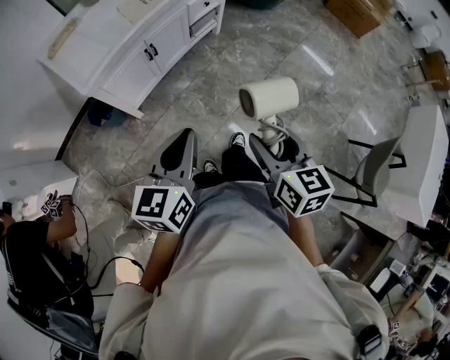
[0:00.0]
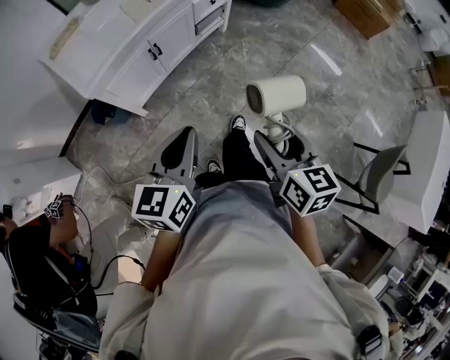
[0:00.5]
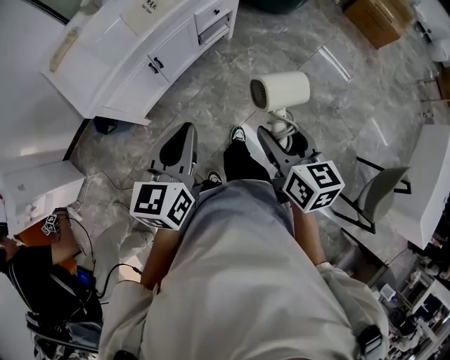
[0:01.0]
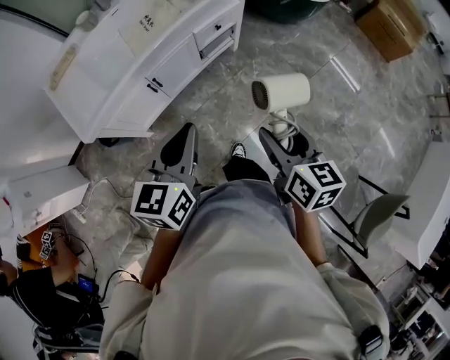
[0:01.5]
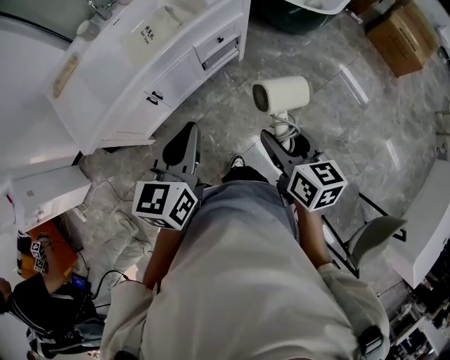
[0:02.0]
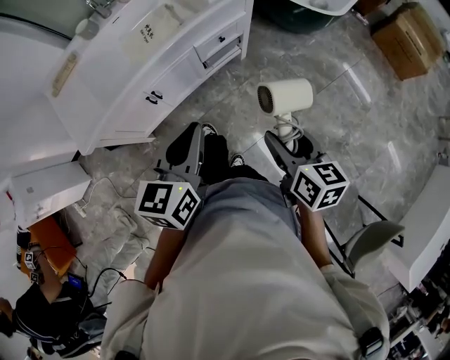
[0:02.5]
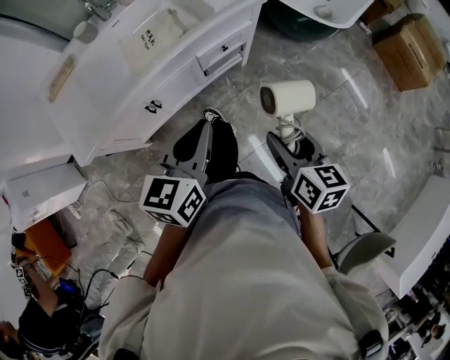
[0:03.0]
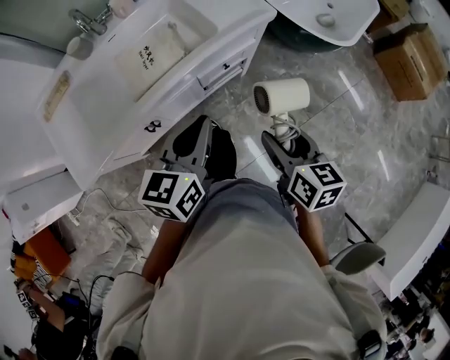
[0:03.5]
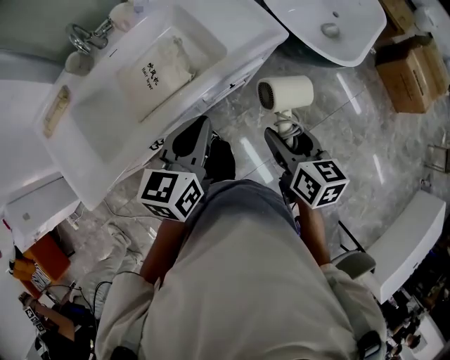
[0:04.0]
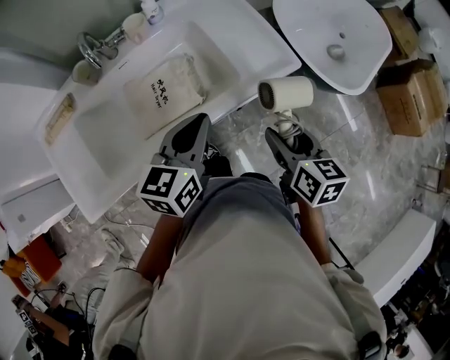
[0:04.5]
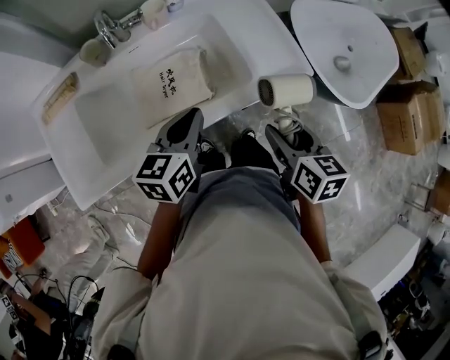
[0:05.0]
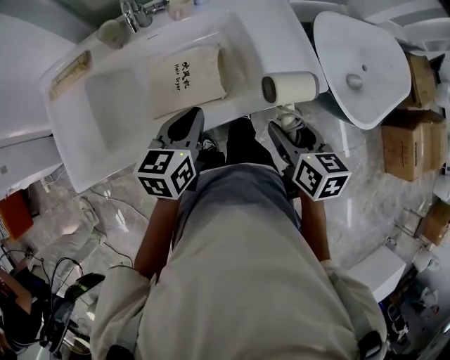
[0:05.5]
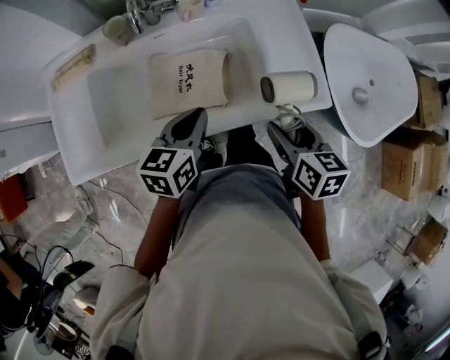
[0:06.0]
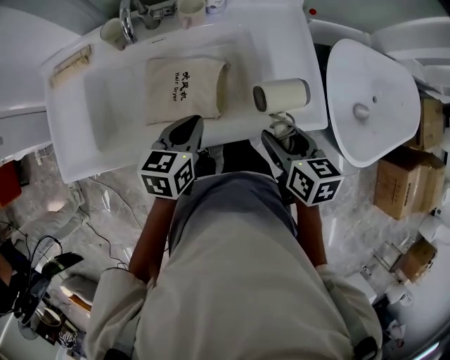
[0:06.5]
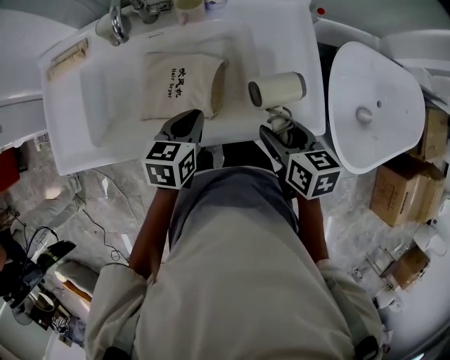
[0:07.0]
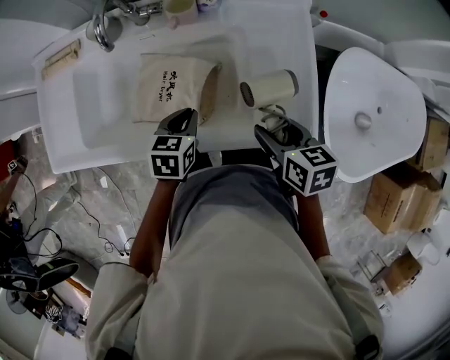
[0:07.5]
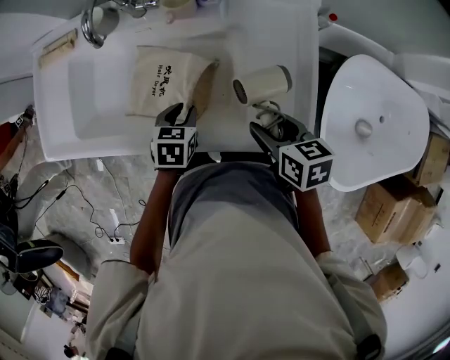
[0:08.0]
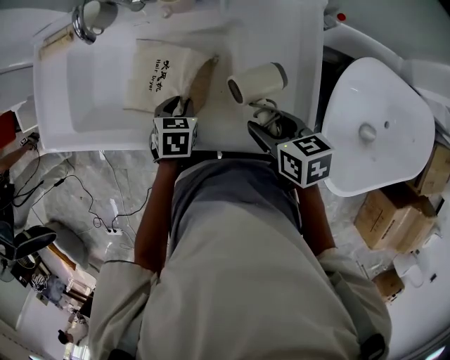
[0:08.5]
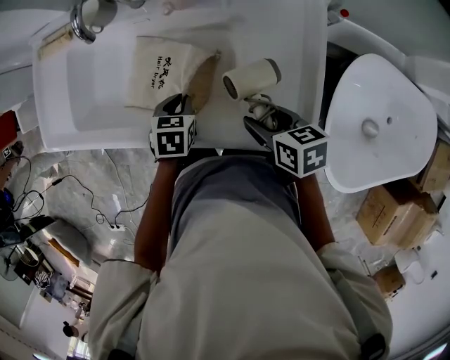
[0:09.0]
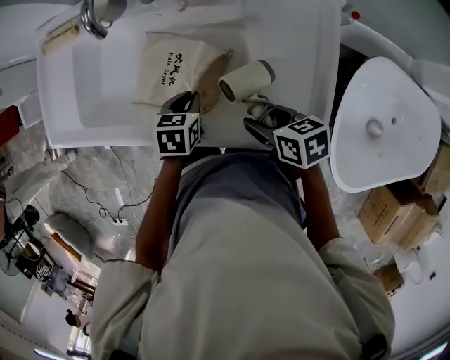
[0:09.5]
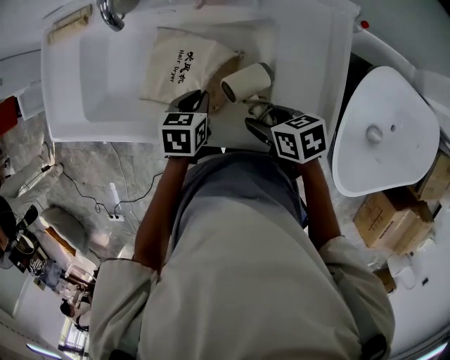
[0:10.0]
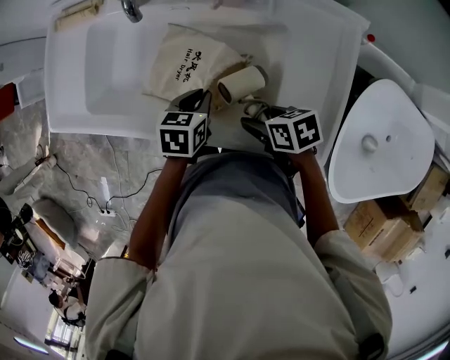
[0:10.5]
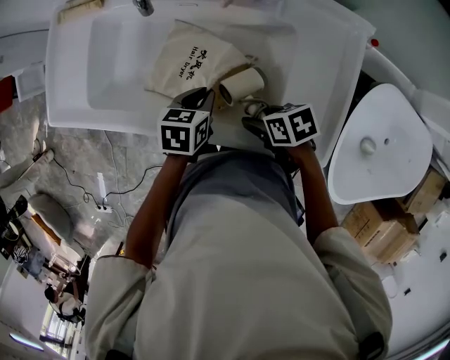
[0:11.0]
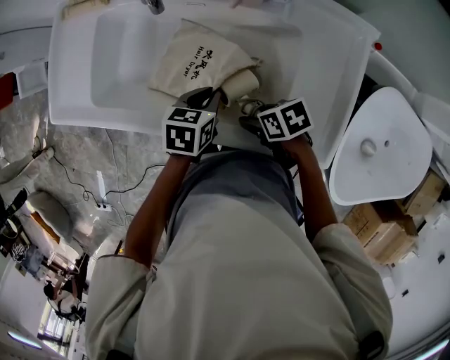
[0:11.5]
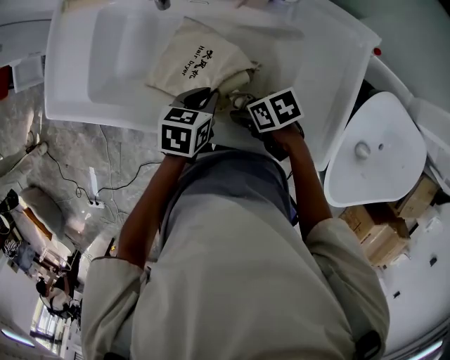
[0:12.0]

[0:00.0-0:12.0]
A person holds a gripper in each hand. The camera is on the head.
0:00.0 to 0:02.0: The two grippers go roughly 35 cm forward and to the right.
0:02.0 to 0:04.0: Both grippers move forward, about 30 cm.
0:04.0 to 0:06.0: The right gripper heads forward, covering approximately 20 cm, and swivels approximately 20 degrees. The left gripper heads forward, to the left and downward, covering some 20 cm, and changes its angle by roughly 20 degrees.
0:06.0 to 0:08.0: The right gripper ends up roughly 15 cm from where it was, and rotates roughly 30 degrees. Meanwhile the left gripper heads downward, covering about 15 cm, points its fingers about 30 degrees further downward, and opens its fingers.
0:08.0 to 0:10.0: The right gripper moves downward and to the left, about 10 cm, and swivels approximately 20 degrees.
0:10.0 to 0:12.0: The right gripper ends up approximately 10 cm from where it was.

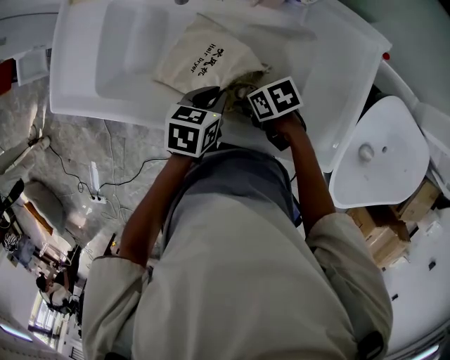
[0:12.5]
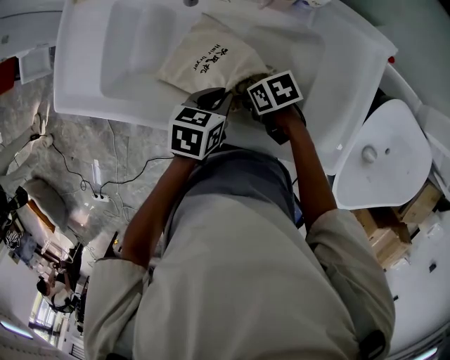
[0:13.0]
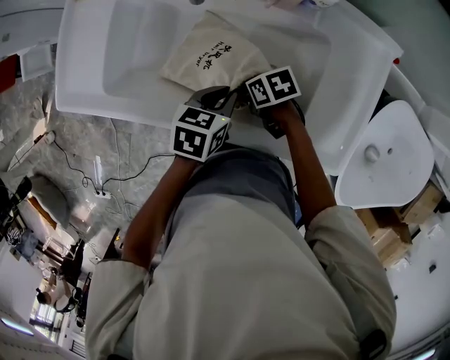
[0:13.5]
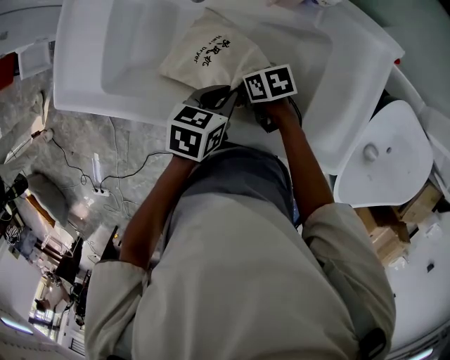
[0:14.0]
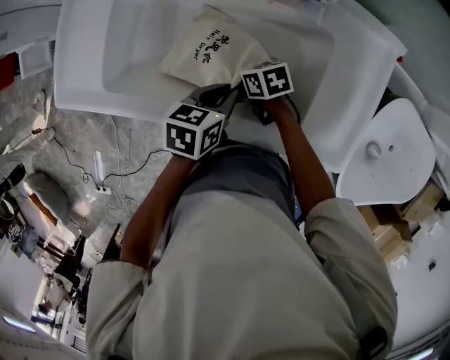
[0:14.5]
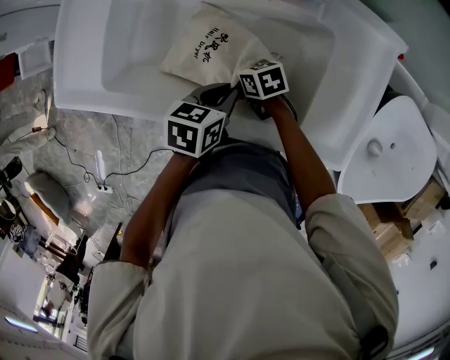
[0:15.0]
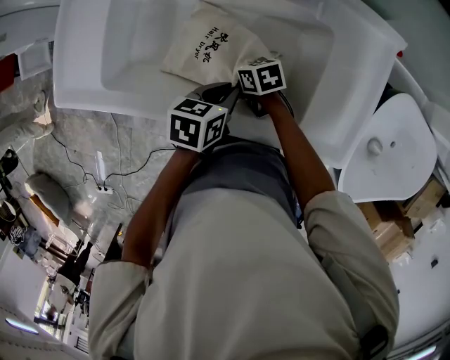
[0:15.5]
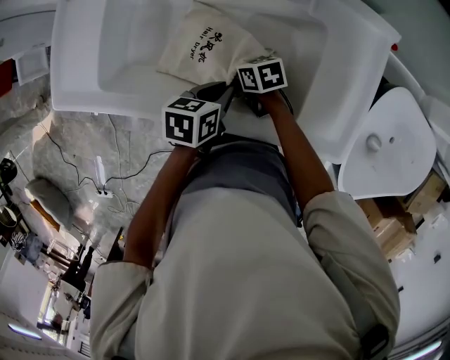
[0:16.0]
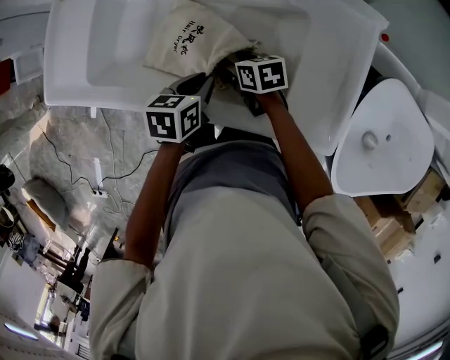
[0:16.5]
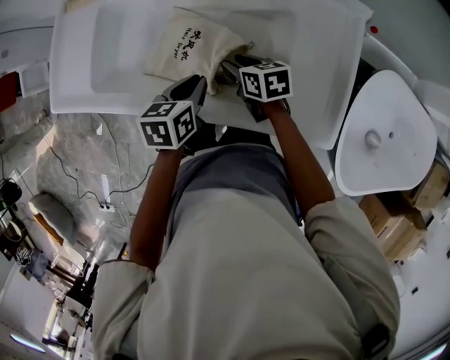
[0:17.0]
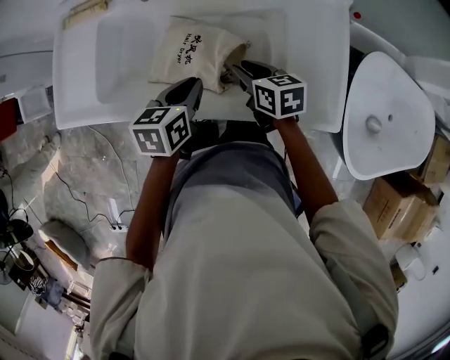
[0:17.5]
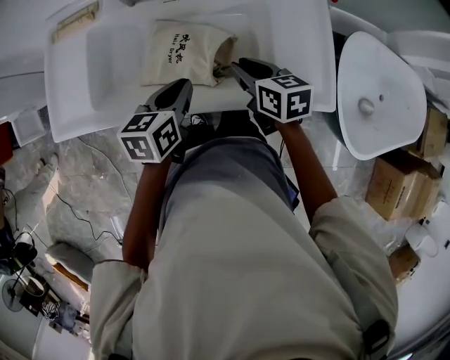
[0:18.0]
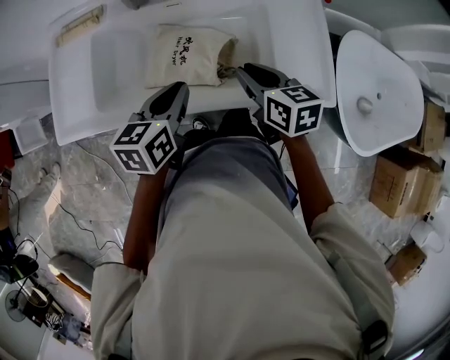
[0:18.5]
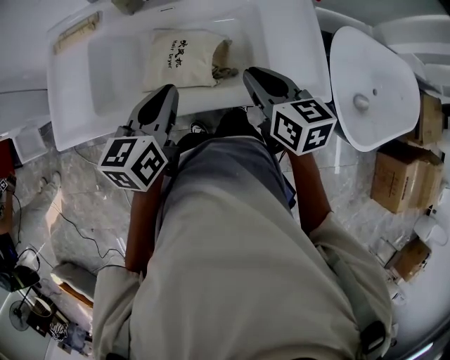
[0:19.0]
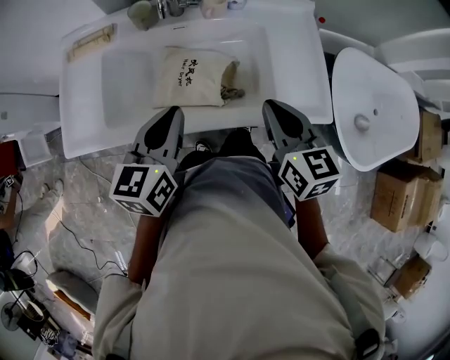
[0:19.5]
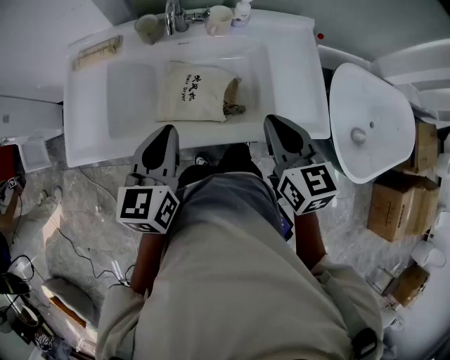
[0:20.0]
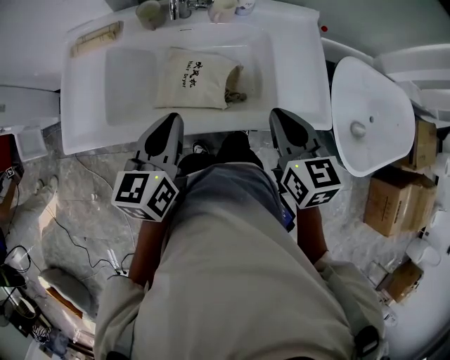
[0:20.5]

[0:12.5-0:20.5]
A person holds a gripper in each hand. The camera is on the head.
0:12.5 to 0:14.5: The right gripper changes place by approximately 10 cm.
0:14.5 to 0:16.5: The right gripper changes place by approximately 5 cm.
0:16.5 to 0:18.5: The right gripper goes some 25 cm upward and backward, swivels approximately 30 degrees, and closes its fingers. Meanwhile the left gripper goes some 15 cm upward and to the left, and changes its angle by about 20 degrees.
0:18.5 to 0:20.5: The right gripper shifts about 10 cm upward and backward. The left gripper travels upward by some 10 cm.

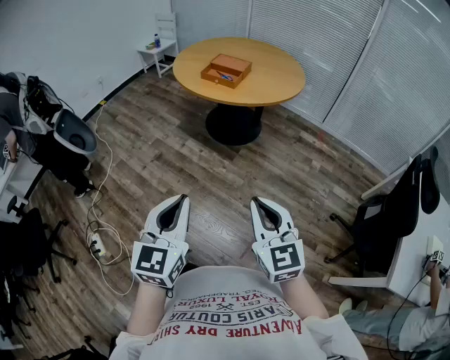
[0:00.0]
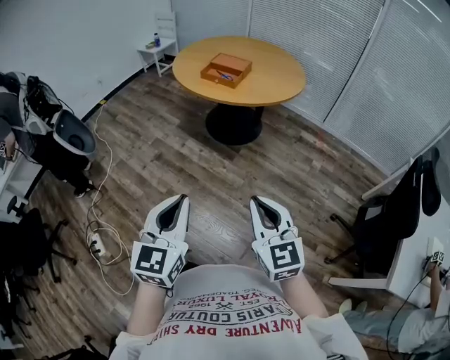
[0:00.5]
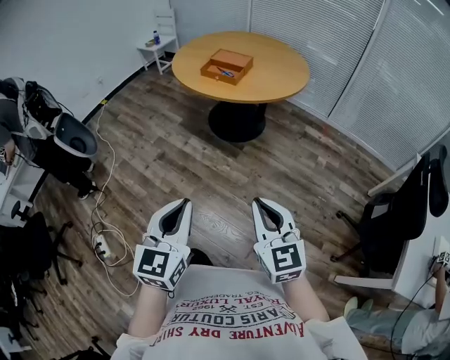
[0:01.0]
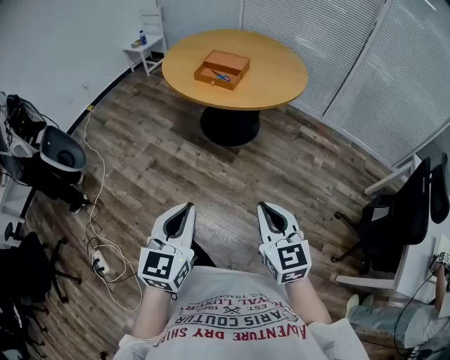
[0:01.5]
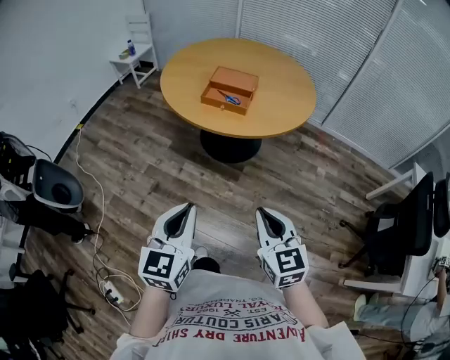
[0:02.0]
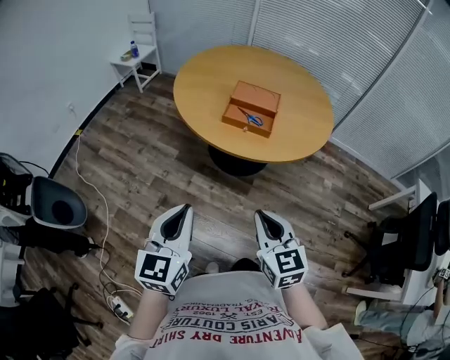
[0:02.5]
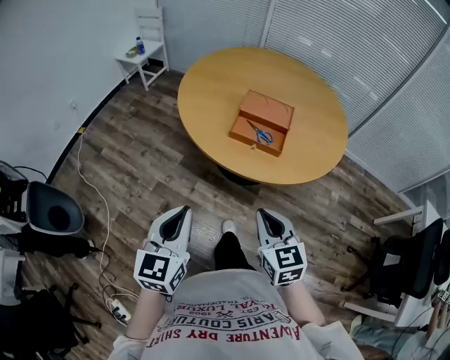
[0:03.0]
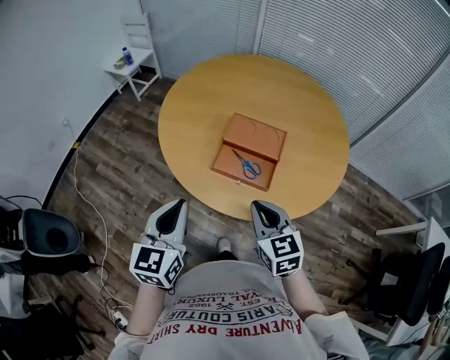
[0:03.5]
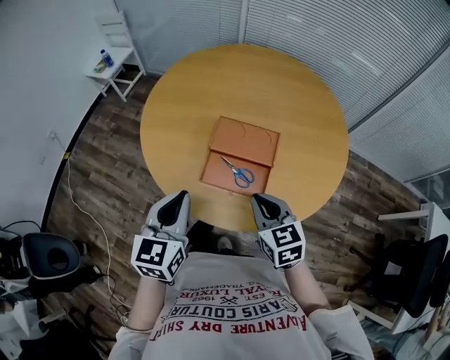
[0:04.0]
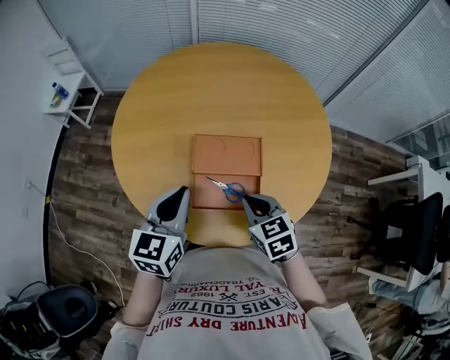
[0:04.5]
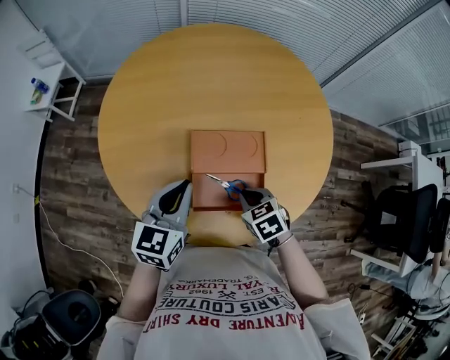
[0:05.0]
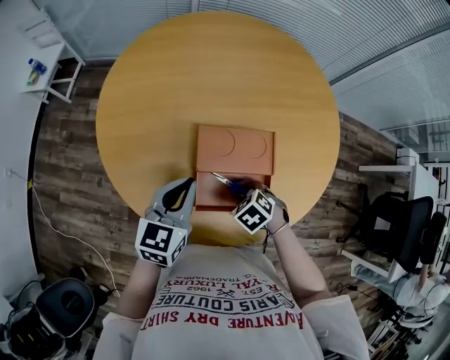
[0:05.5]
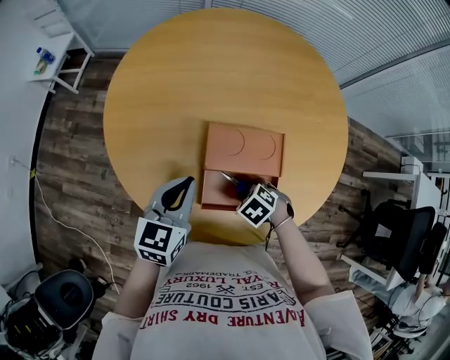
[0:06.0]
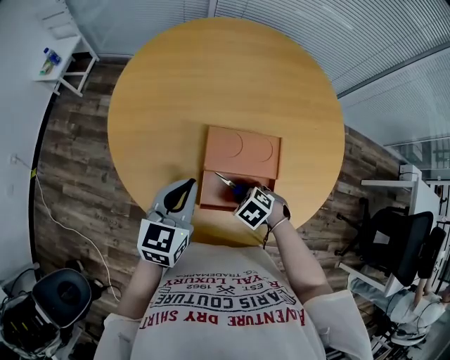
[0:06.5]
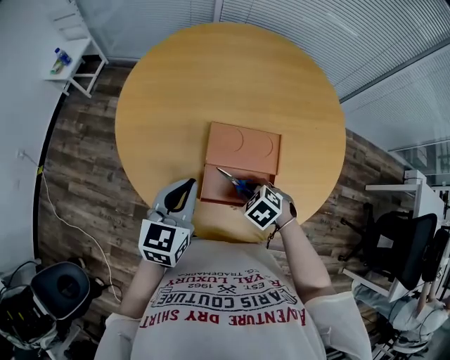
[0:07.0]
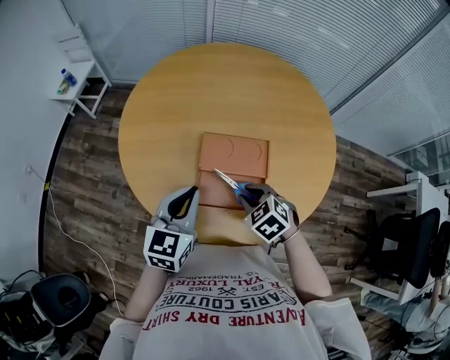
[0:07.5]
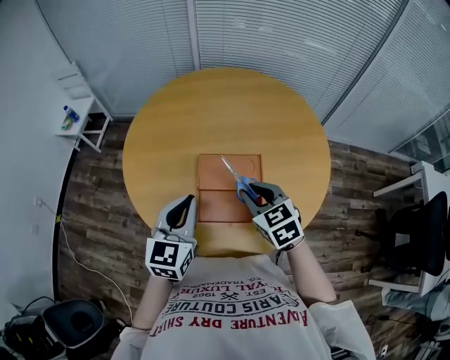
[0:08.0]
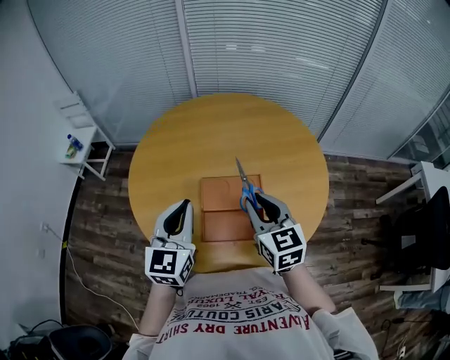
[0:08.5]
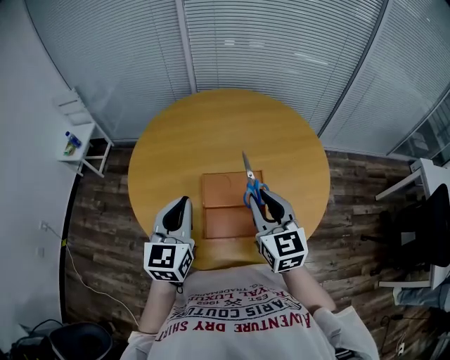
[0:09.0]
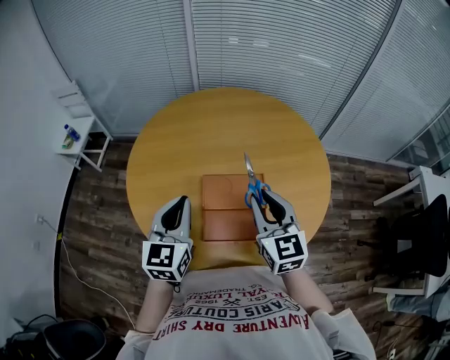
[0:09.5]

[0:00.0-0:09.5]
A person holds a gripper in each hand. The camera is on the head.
0:00.0 to 0:02.0: Both grippers travel together forward and to the left, some 30 cm.
0:02.0 to 0:04.0: The pair of grippers is taken forward, about 50 cm.
0:04.0 to 0:05.5: The left gripper ends up approximately 20 cm from where it was, and turns by about 20 degrees; the right gripper shifts some 20 cm downward, tilts its fingers approximately 50 degrees downward, and opens its fingers.
0:05.5 to 0:07.5: The right gripper heads upward, covering roughly 10 cm, and rotates approximately 20 degrees, while the left gripper moves some 5 cm.
0:07.5 to 0:09.5: The right gripper travels upward by approximately 20 cm, and points its fingers approximately 50 degrees further upward; the left gripper is displaced upward and forward by some 10 cm.
